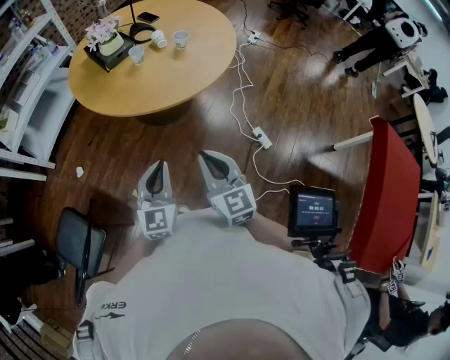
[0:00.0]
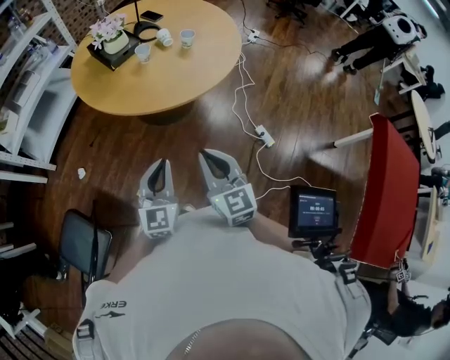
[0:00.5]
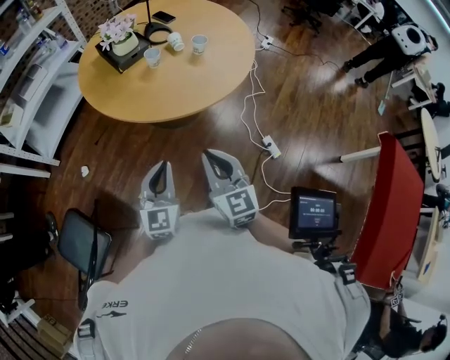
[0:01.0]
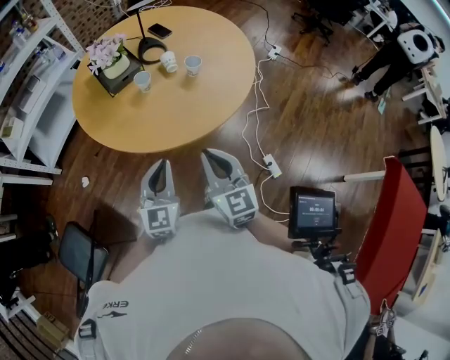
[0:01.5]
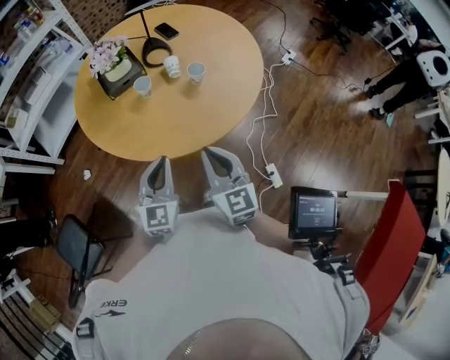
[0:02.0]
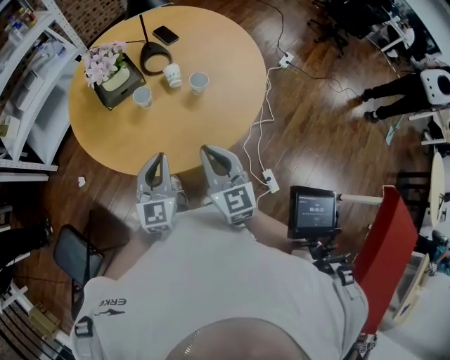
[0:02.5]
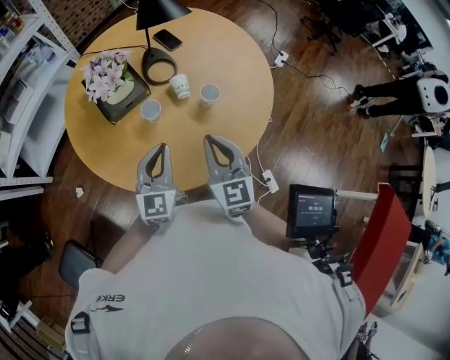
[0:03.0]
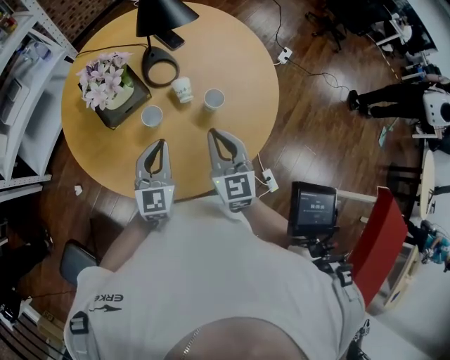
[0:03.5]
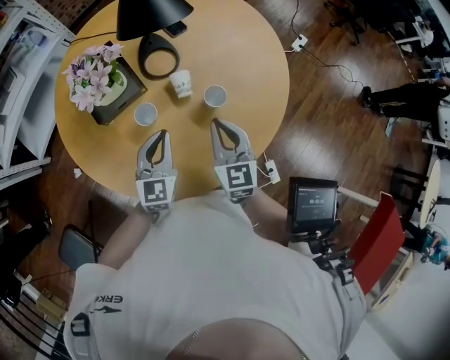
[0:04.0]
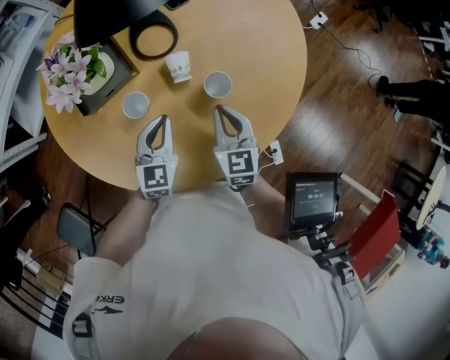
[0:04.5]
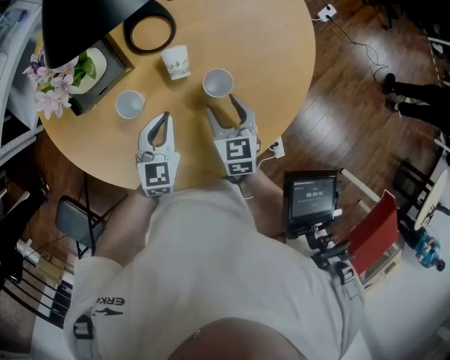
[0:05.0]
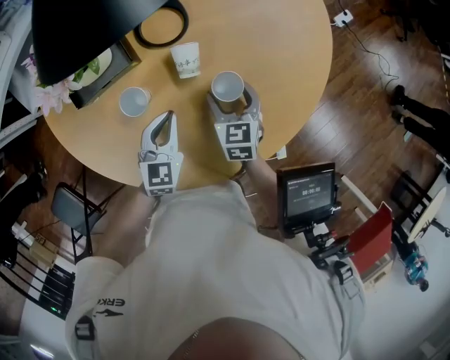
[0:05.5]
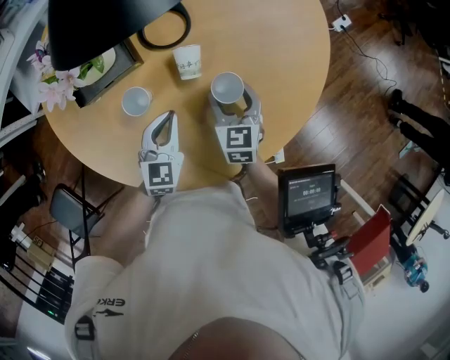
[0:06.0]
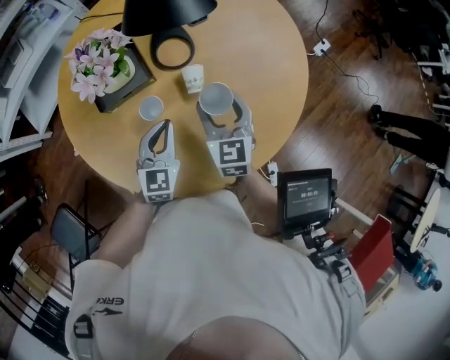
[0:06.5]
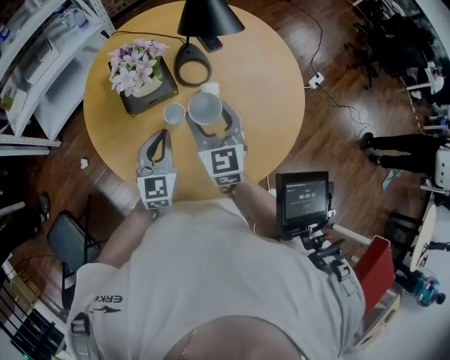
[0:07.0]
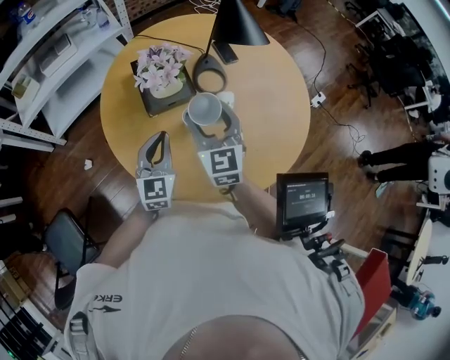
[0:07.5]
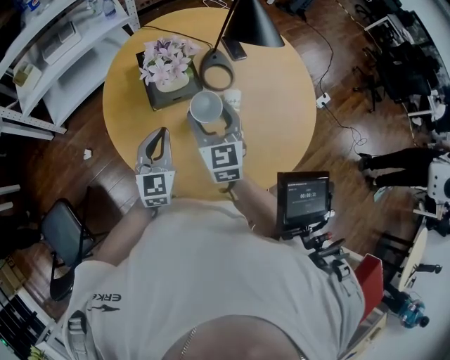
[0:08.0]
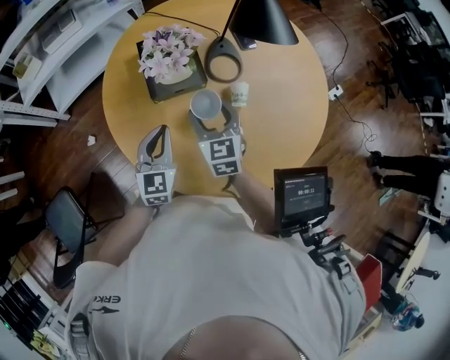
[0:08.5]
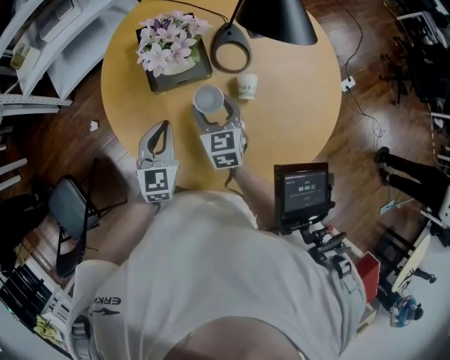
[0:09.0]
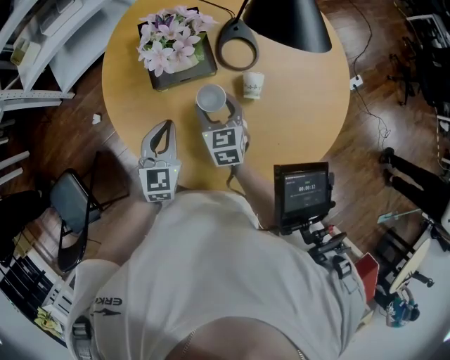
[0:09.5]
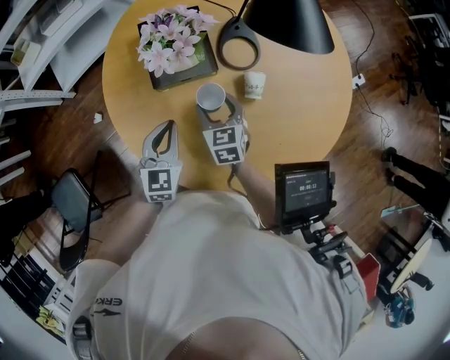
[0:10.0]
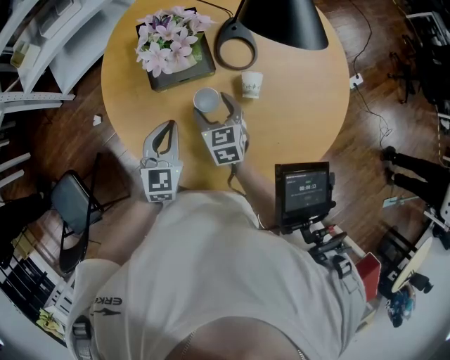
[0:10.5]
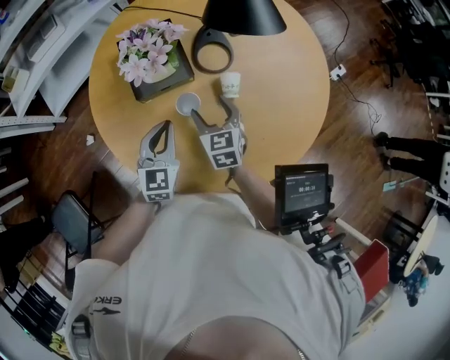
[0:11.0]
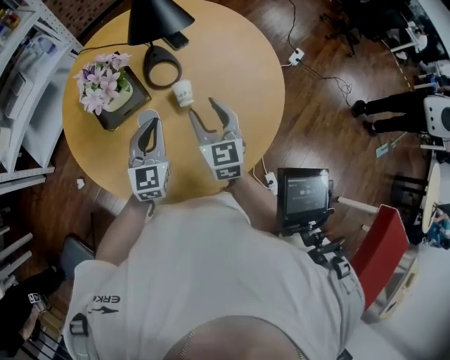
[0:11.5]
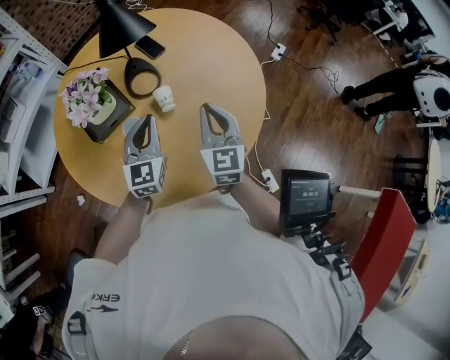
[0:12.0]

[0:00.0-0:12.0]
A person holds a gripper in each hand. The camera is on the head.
0:00.0 to 0:02.0: Both grippers travel together forward, approximately 25 cm.
0:02.0 to 0:04.0: Both grippers travel together forward, about 30 cm.
0:04.0 to 0:06.0: The right gripper is displaced downward and forward by some 20 cm, and opens its fingers, while the left gripper shifts roughly 10 cm downward.
0:06.0 to 0:08.0: Both grippers travel together to the left and upward, about 30 cm. The left gripper turns by roughly 20 degrees. The right gripper rotates roughly 30 degrees.
0:08.0 to 0:10.0: The left gripper moves downward, some 5 cm; the right gripper is displaced downward by about 20 cm, and turns by roughly 20 degrees.
0:10.0 to 0:12.0: Both grippers travel together to the right and upward, about 25 cm. The left gripper rotates some 20 degrees. The right gripper changes its angle by approximately 40 degrees, and closes up.

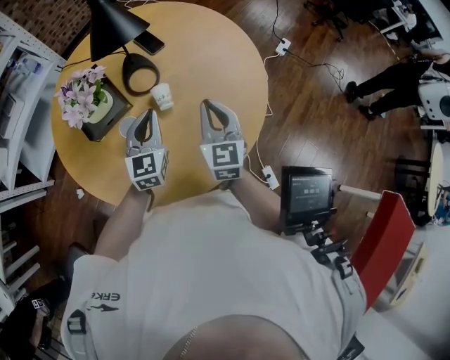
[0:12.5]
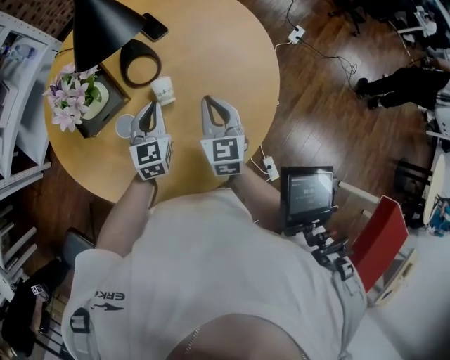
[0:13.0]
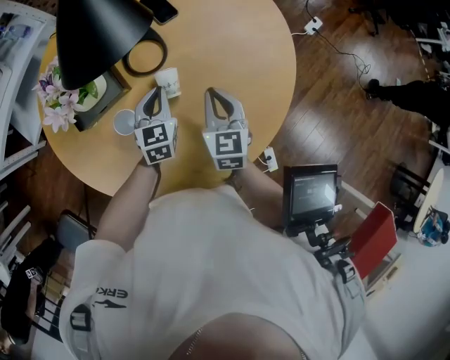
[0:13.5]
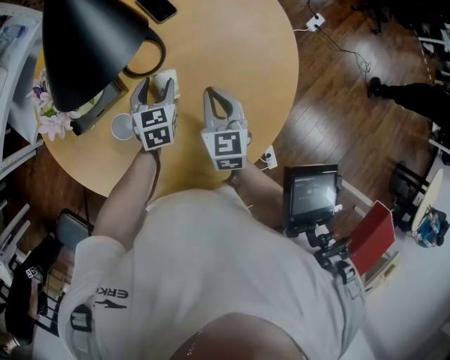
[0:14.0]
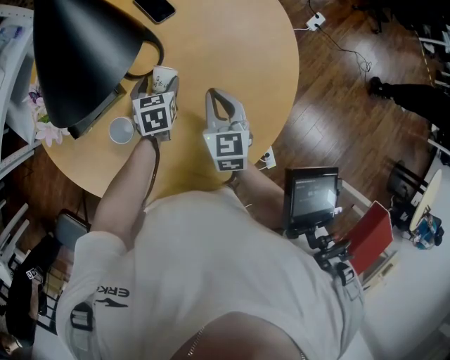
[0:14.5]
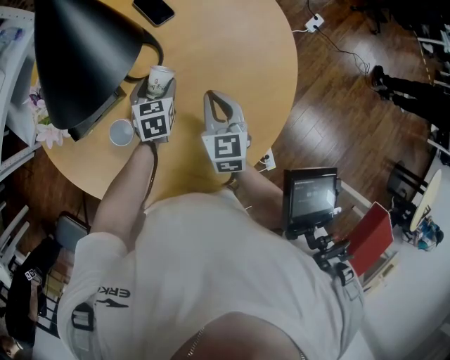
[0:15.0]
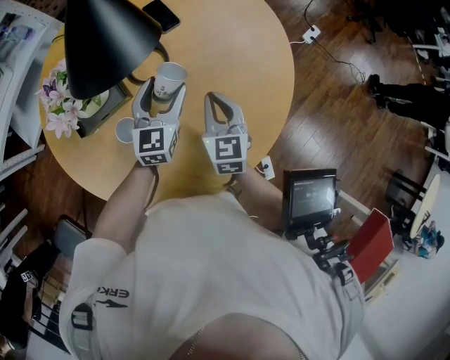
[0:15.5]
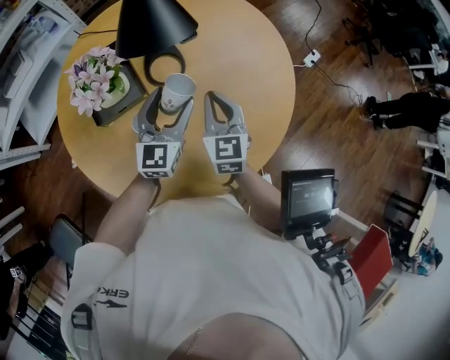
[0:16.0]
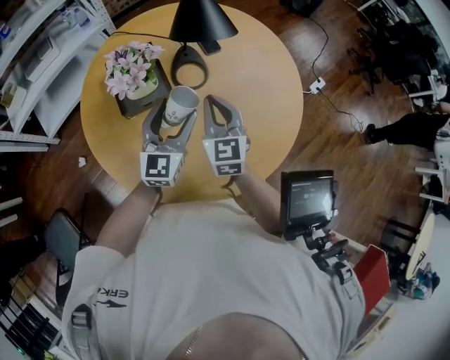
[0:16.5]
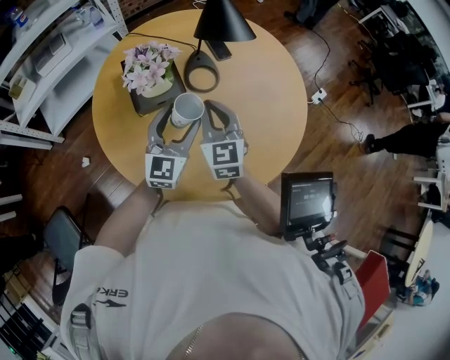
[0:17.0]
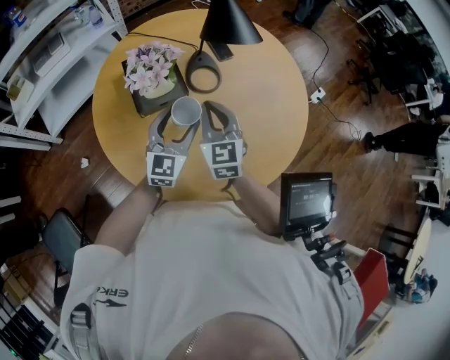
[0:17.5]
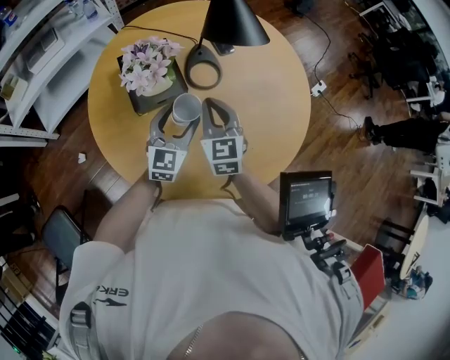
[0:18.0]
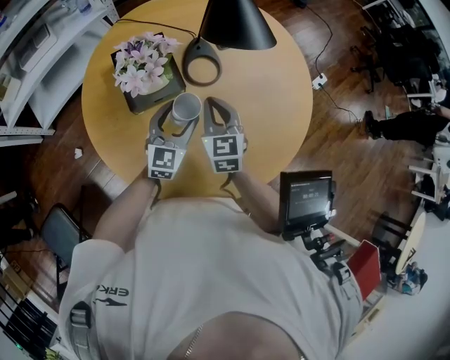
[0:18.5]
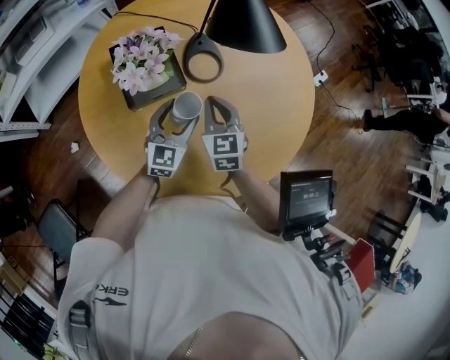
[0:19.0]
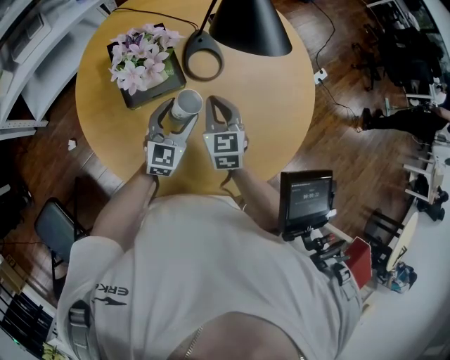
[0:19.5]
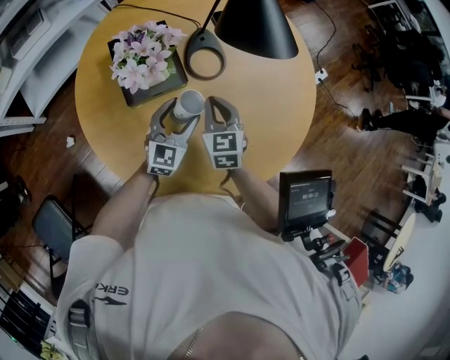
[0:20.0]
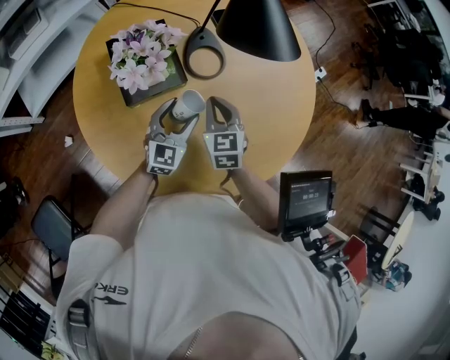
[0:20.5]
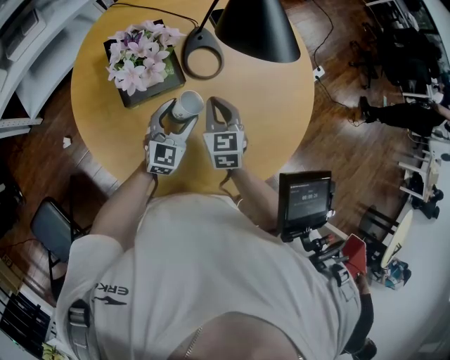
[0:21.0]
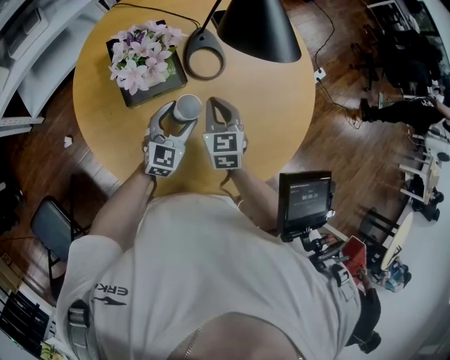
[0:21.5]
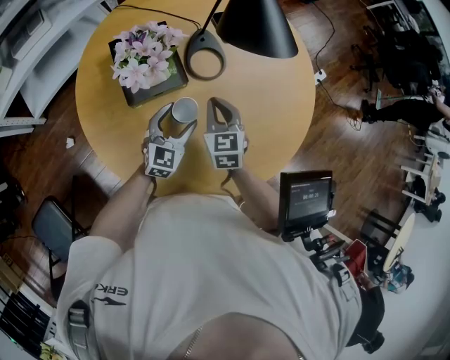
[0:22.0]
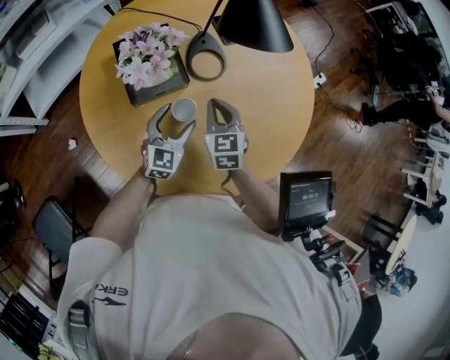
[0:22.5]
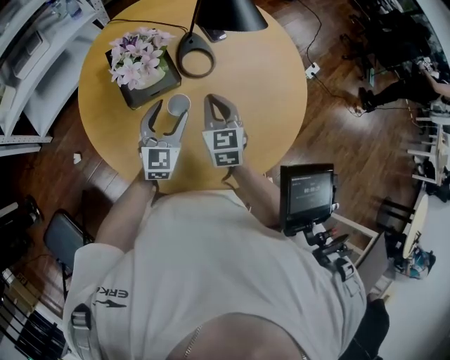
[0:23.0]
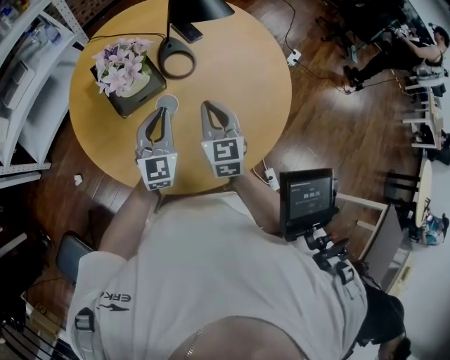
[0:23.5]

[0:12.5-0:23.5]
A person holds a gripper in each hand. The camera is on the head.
0:12.5 to 0:14.5: Both grippers move downward and forward, about 20 cm. The left gripper tips its fingers downward by approximately 40 degrees, and opens.
0:14.5 to 0:16.0: The right gripper shifts roughly 10 cm upward; the left gripper moves upward, about 20 cm, and tilts its fingers approximately 40 degrees upward.
0:16.0 to 0:18.0: The right gripper moves to the left, approximately 15 cm, while the left gripper travels to the left and backward by approximately 10 cm.
0:18.0 to 0:20.0: The two grippers go approximately 10 cm downward.
0:20.0 to 0:21.5: The grippers make only small movements.
0:21.5 to 0:23.5: The right gripper heads upward and backward, covering some 10 cm. Meanwhile the left gripper moves upward, about 10 cm, and closes up.

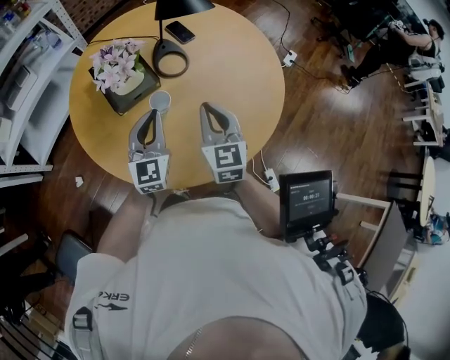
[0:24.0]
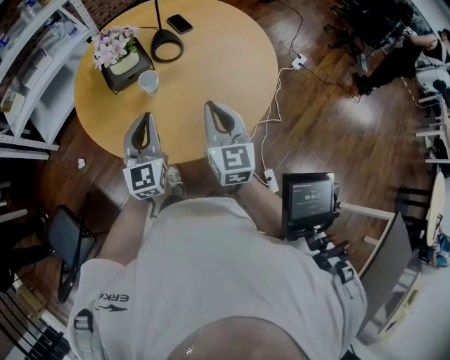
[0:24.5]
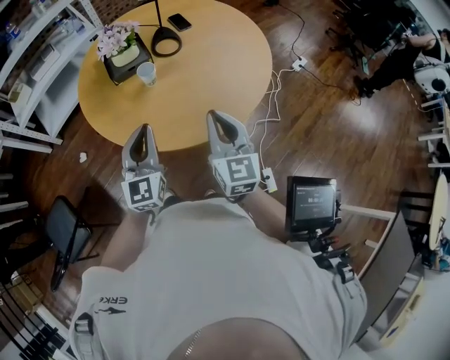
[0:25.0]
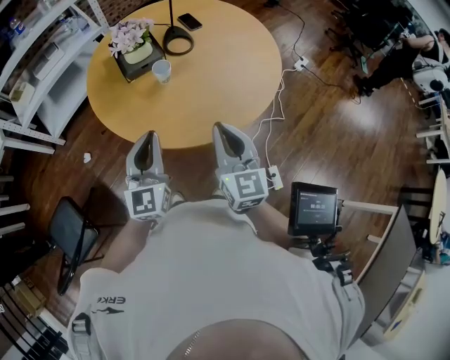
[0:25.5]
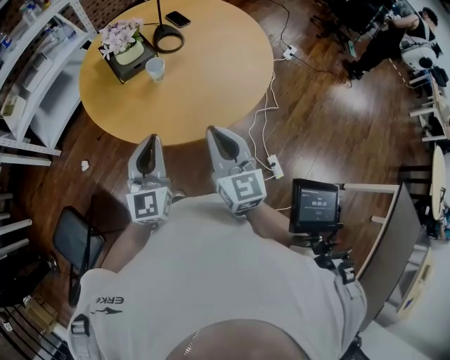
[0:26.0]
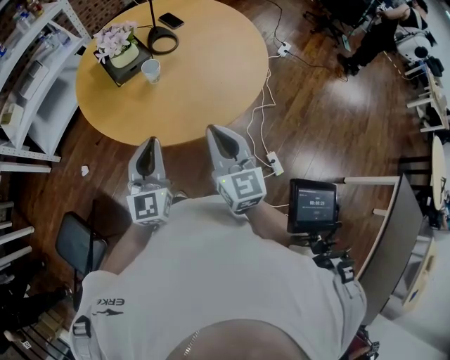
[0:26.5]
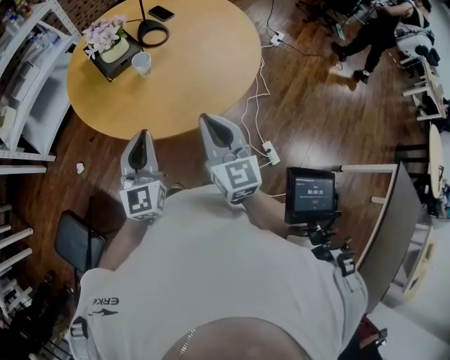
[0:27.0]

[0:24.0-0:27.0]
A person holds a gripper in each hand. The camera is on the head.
0:24.0 to 0:25.5: The grippers both shift backward by approximately 25 cm.
0:25.5 to 0:27.0: The grippers make only small movements.

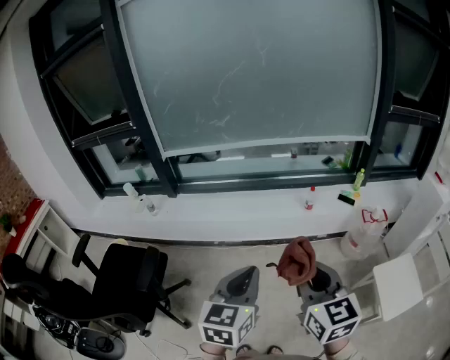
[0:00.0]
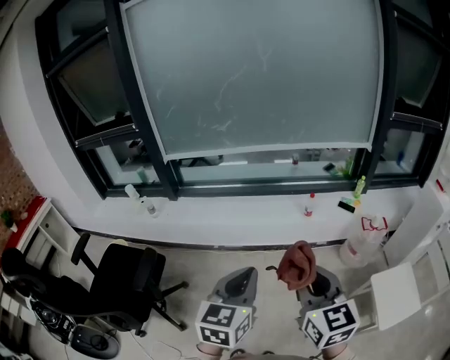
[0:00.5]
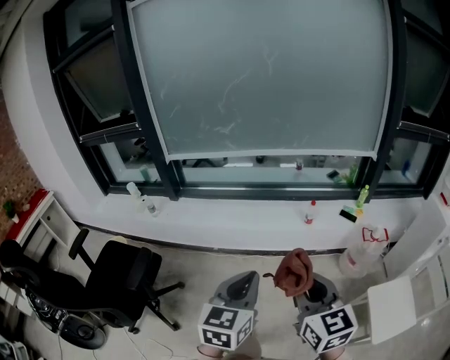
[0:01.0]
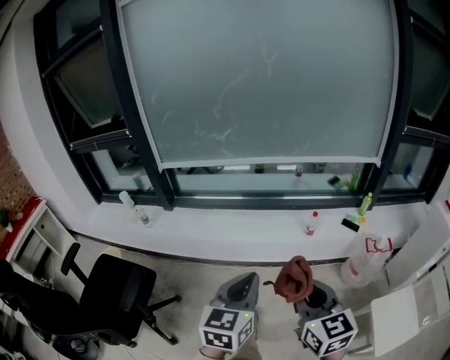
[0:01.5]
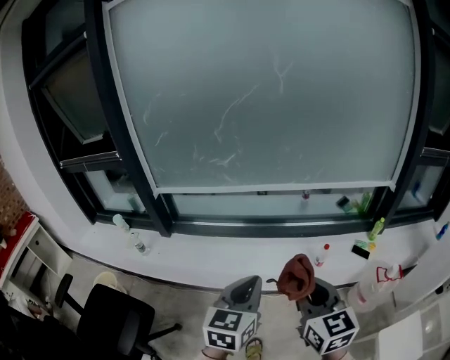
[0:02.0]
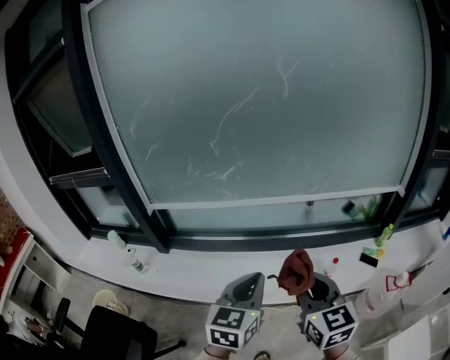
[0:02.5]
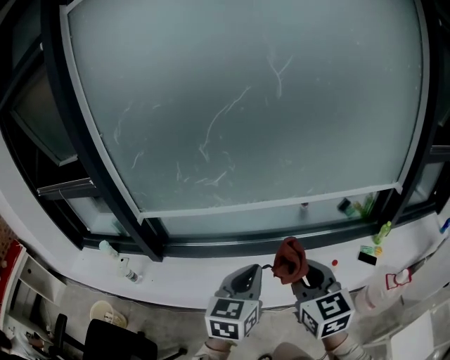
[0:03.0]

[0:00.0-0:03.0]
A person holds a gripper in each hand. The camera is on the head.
0:00.0 to 0:01.5: The two grippers go roughly 10 cm forward.
0:01.5 to 0:03.0: The two grippers travel together, forward, about 40 cm.
